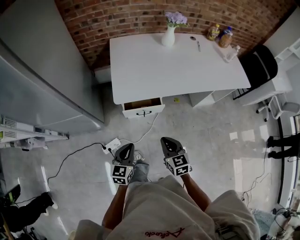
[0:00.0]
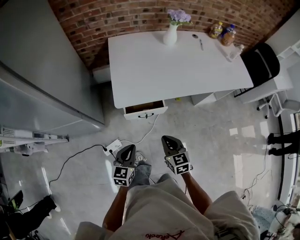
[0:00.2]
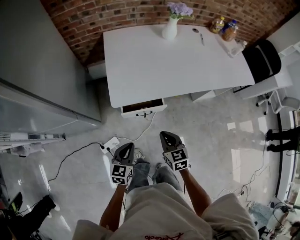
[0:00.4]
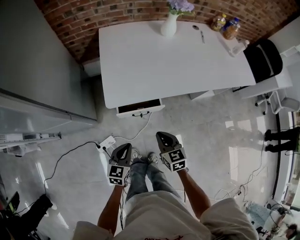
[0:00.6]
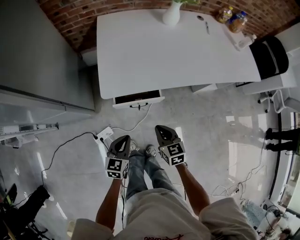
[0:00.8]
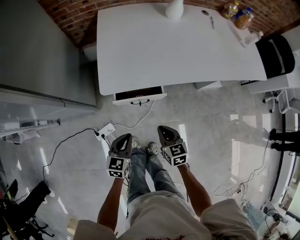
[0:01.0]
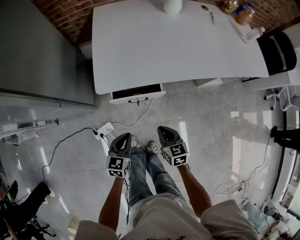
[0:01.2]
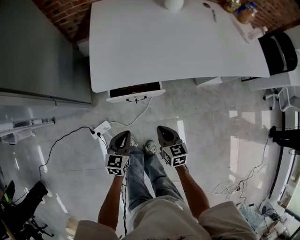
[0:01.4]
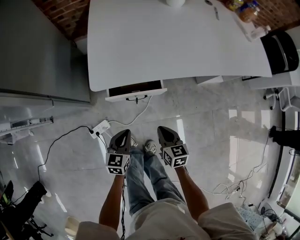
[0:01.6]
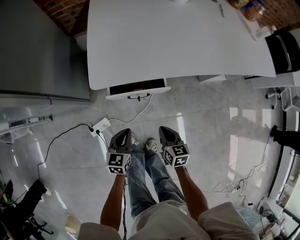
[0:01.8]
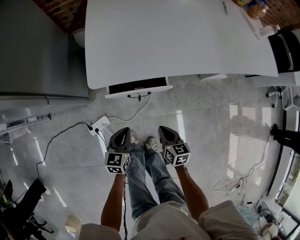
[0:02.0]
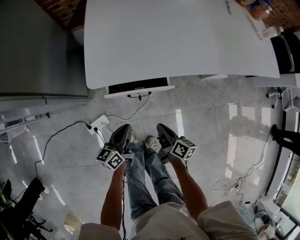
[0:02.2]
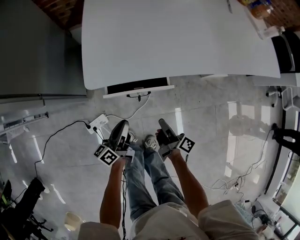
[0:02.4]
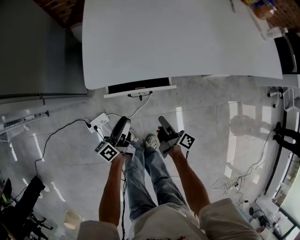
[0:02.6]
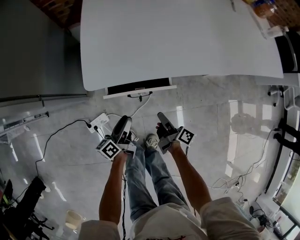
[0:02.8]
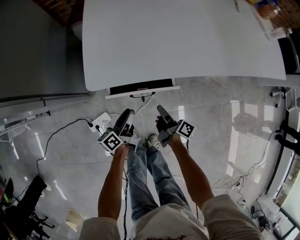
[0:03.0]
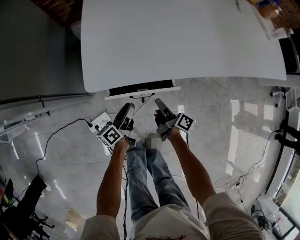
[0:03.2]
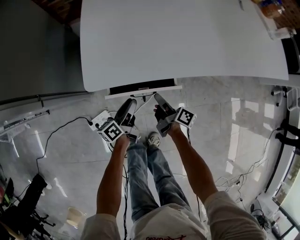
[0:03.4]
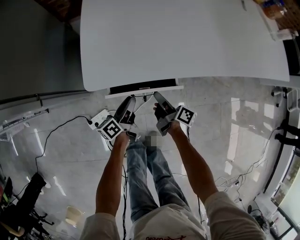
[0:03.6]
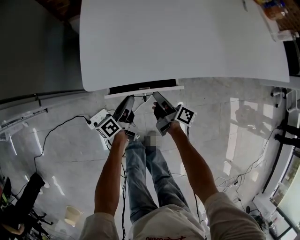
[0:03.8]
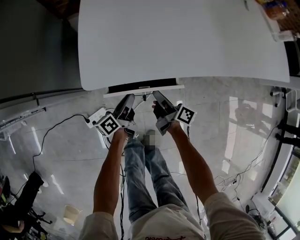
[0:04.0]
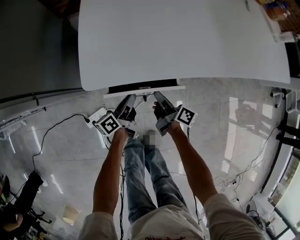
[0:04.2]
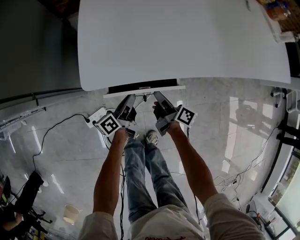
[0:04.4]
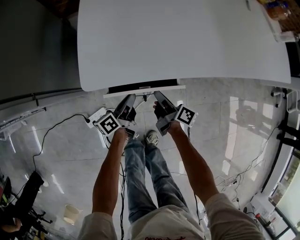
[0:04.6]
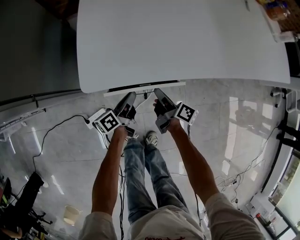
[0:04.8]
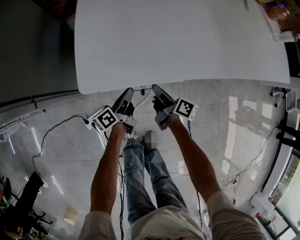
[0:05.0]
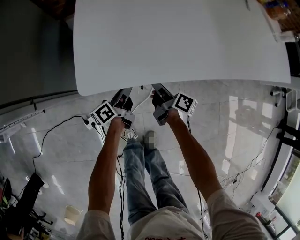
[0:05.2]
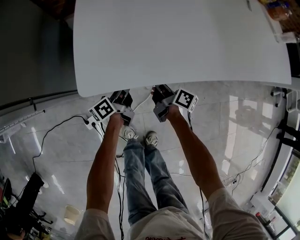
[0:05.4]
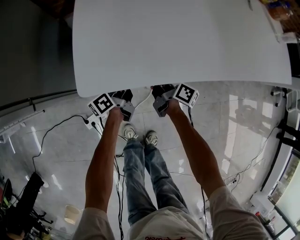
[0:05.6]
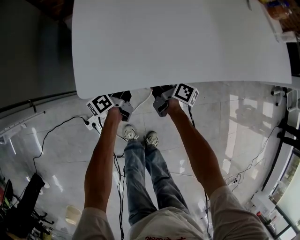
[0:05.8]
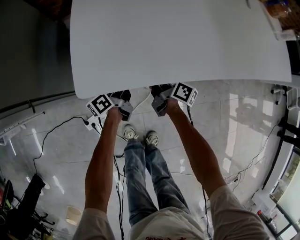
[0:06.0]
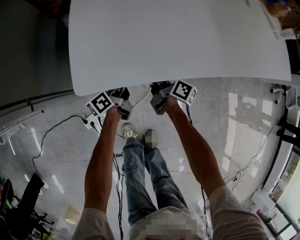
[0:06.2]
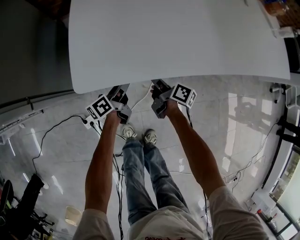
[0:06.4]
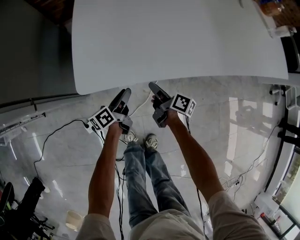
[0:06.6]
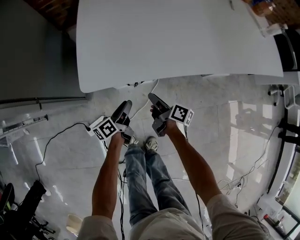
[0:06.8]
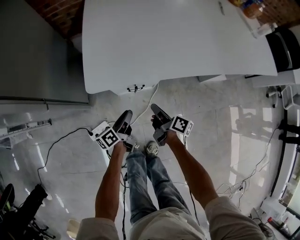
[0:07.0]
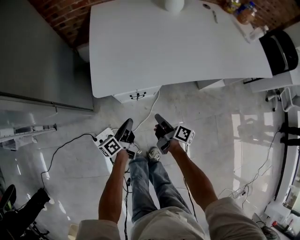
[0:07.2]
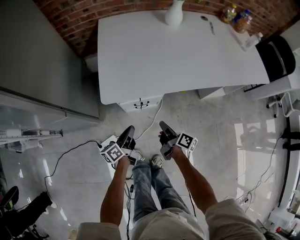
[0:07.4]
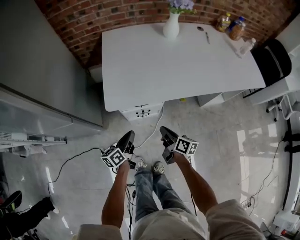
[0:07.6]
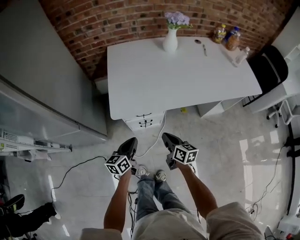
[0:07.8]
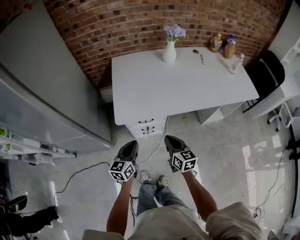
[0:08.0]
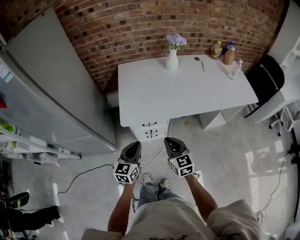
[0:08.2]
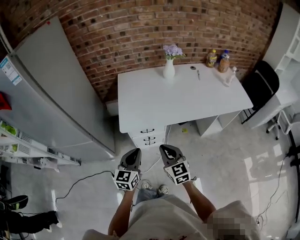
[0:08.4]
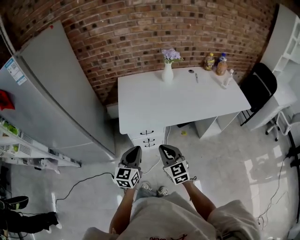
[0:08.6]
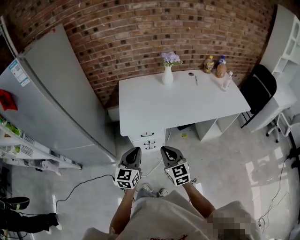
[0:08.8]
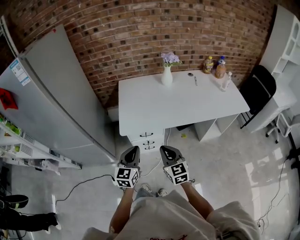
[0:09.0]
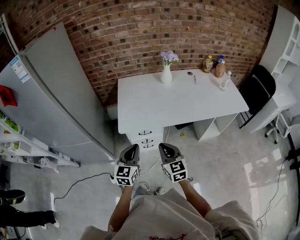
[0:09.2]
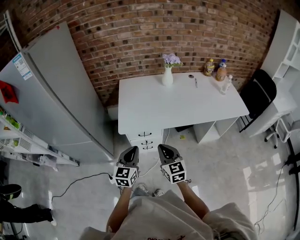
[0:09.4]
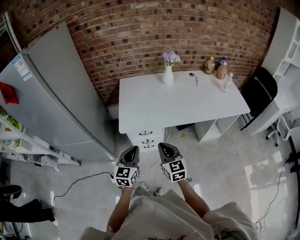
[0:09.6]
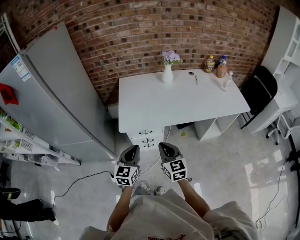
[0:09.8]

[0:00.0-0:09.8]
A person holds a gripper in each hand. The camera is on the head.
0:00.0 to 0:01.4: The left gripper heads downward and forward, covering some 20 cm. The right gripper heads downward, covering roughly 20 cm.
0:01.4 to 0:02.8: The grippers both shift downward and forward by some 10 cm. The left gripper rotates around the line of its fingers by about 50 degrees, counterclockwise from behind, and opens. The right gripper rotates around the line of its fingers by roughly 60 degrees, clockwise from behind, and opens.
0:02.8 to 0:04.2: Both grippers move forward, some 10 cm. The right gripper closes its fingers. The left gripper closes.
0:04.2 to 0:05.6: Both grippers travel together forward, some 10 cm.
0:05.6 to 0:07.0: Both grippers travel together backward, some 15 cm. The left gripper opens; the right gripper opens, then closes again.
0:07.0 to 0:08.4: The two grippers go some 35 cm upward. The right gripper rolls counterclockwise, seen from behind, by approximately 80 degrees. The left gripper twists about 60 degrees clockwise, seen from behind, and closes its fingers.
0:08.4 to 0:09.8: The grippers stay close to where they were, moving slightly.

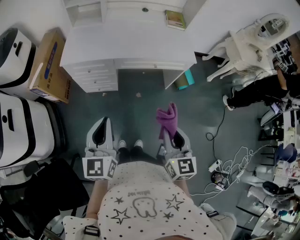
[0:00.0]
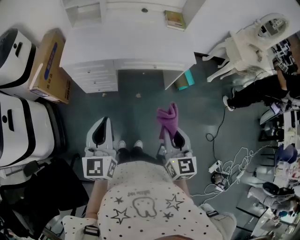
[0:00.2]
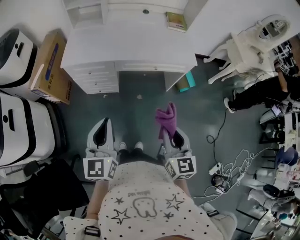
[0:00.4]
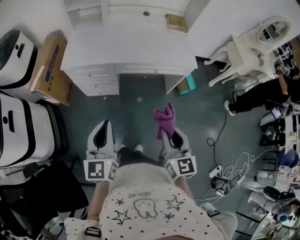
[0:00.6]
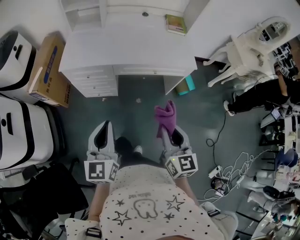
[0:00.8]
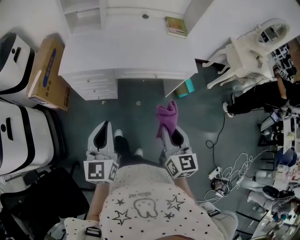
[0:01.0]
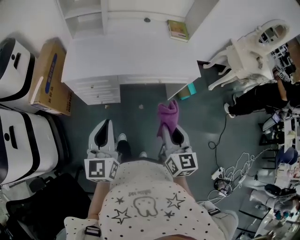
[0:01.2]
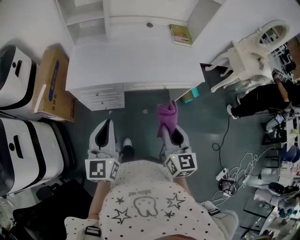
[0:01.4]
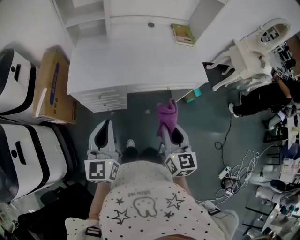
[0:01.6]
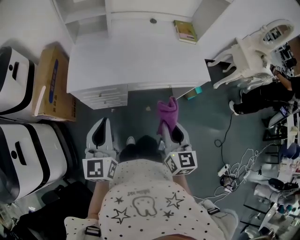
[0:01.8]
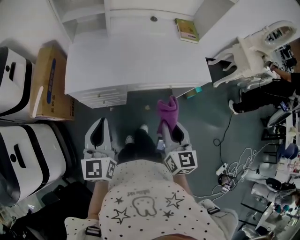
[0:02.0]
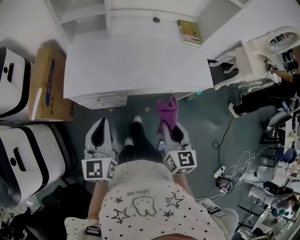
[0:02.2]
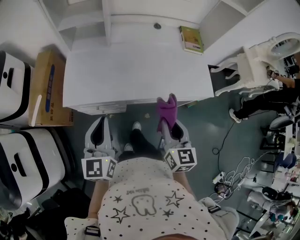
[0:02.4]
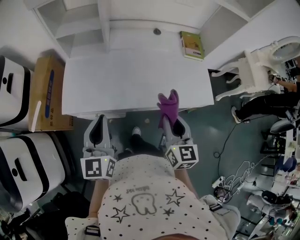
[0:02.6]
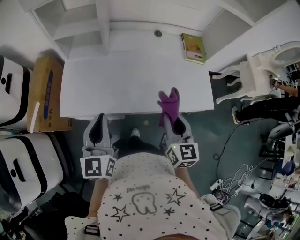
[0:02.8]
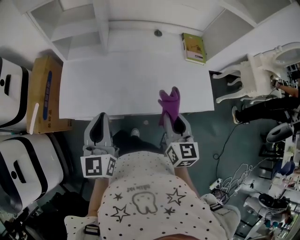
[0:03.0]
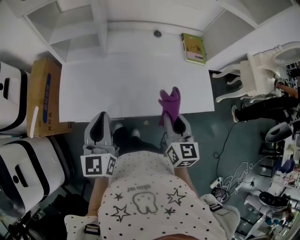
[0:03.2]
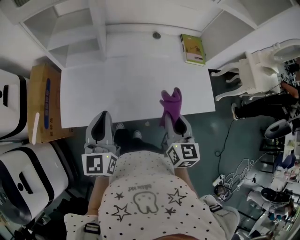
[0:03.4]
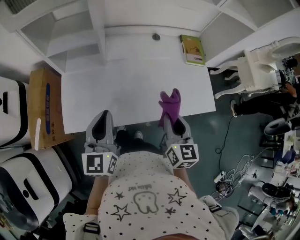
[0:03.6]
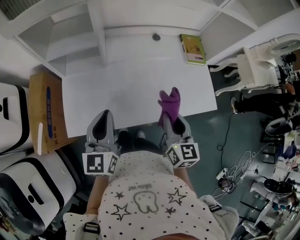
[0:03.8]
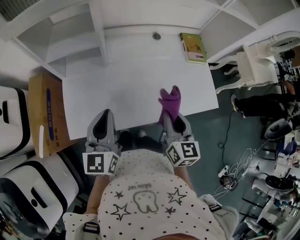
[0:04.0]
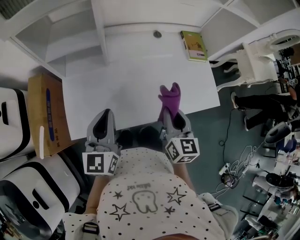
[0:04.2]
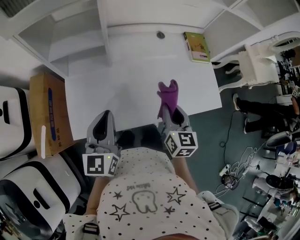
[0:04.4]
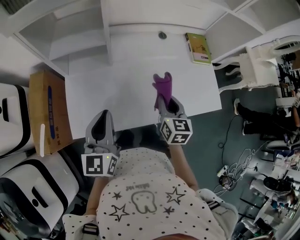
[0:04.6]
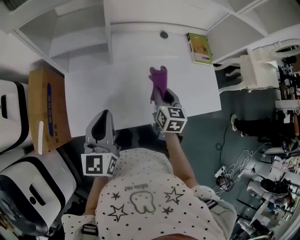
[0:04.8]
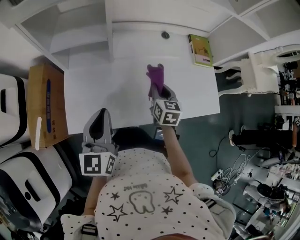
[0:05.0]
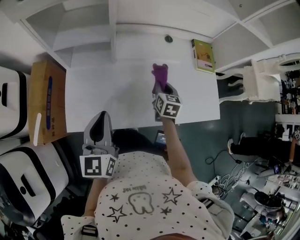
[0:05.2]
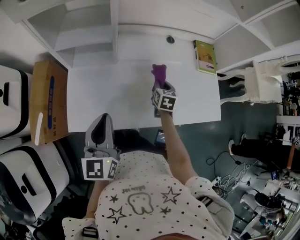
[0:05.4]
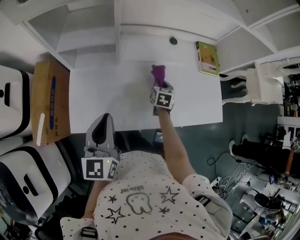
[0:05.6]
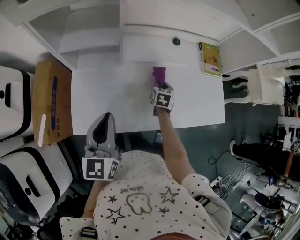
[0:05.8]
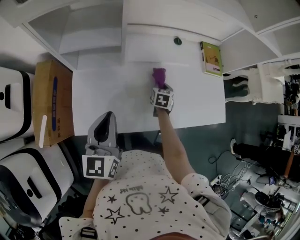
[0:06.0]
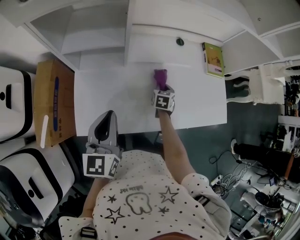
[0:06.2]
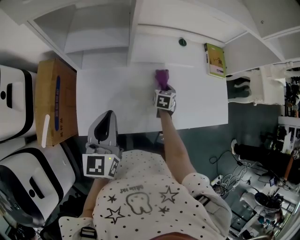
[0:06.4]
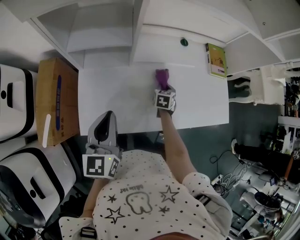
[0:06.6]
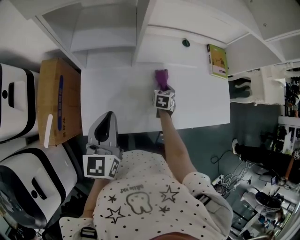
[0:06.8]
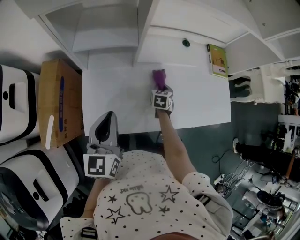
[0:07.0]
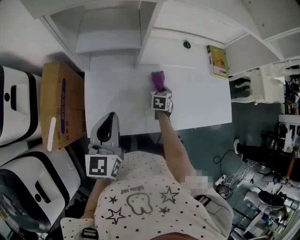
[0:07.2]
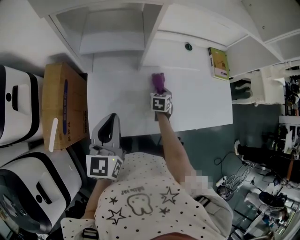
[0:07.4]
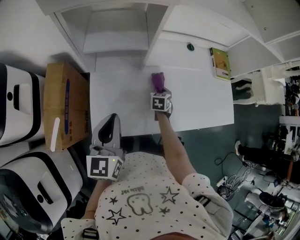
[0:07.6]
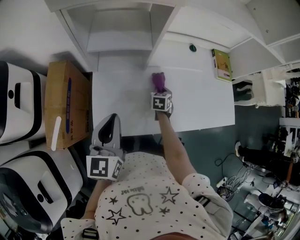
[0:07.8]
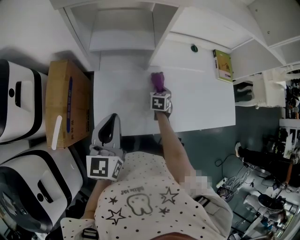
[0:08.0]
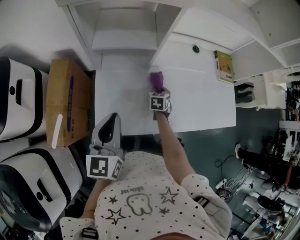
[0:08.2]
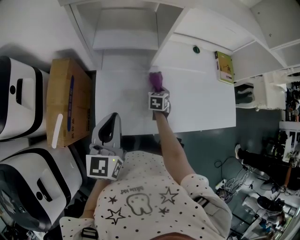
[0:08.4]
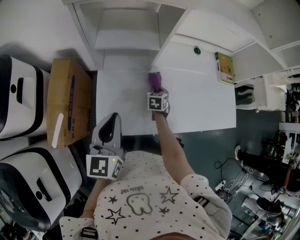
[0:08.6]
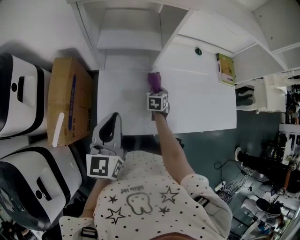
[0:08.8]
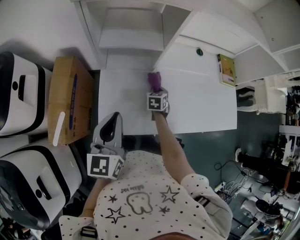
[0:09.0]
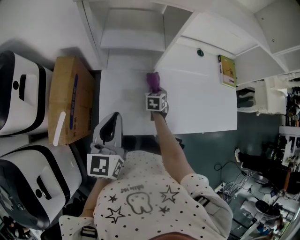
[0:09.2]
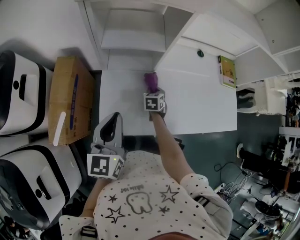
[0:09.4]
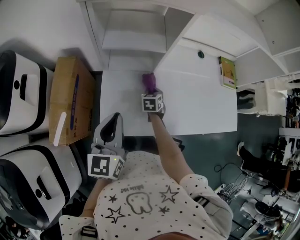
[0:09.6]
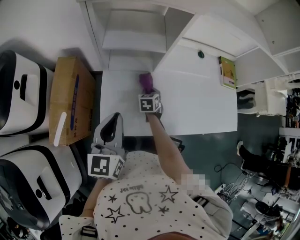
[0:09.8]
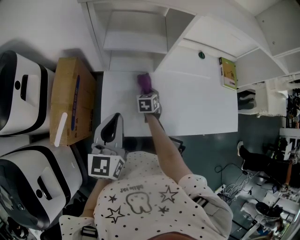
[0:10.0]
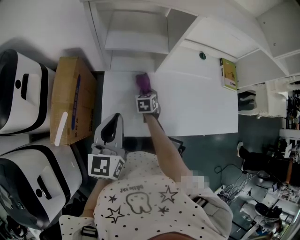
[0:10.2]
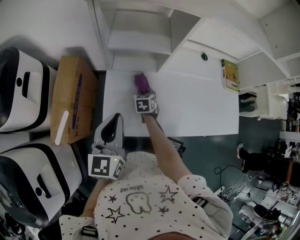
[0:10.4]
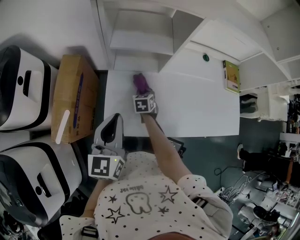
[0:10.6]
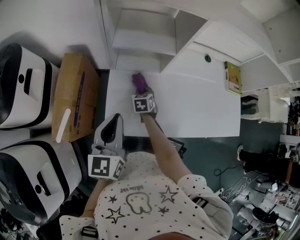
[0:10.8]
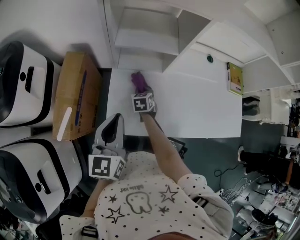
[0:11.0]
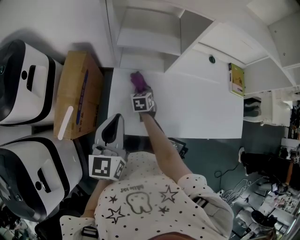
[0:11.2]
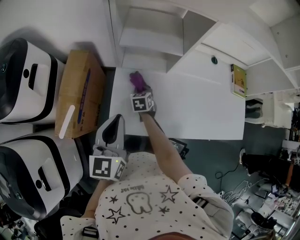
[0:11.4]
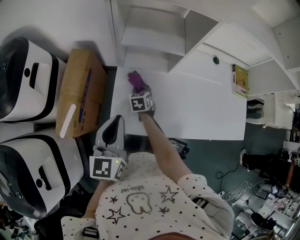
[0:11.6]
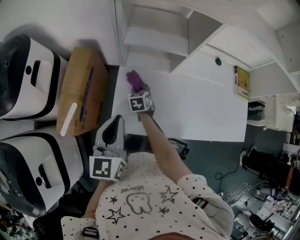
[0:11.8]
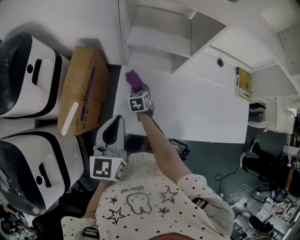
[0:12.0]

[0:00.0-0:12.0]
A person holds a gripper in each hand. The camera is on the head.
0:00.0 to 0:01.6: The grippers both shift forward and to the left by about 20 cm.
0:01.6 to 0:03.0: Both grippers travel together forward, some 25 cm.
0:03.0 to 0:04.4: The grippers both shift forward and to the left by roughly 10 cm.
0:04.4 to 0:06.0: The right gripper moves downward and forward, approximately 30 cm, and rotates roughly 30 degrees.
0:06.0 to 0:07.6: The two grippers go approximately 10 cm to the left.
0:07.6 to 0:09.0: The right gripper travels to the left by approximately 5 cm.
0:09.0 to 0:10.4: The right gripper goes some 10 cm to the left.
0:10.4 to 0:12.0: The right gripper goes roughly 10 cm to the left.

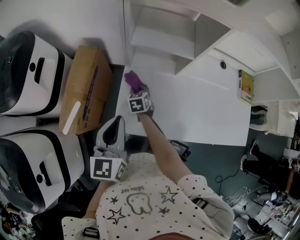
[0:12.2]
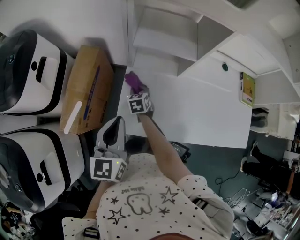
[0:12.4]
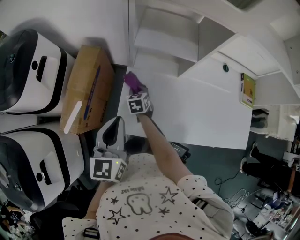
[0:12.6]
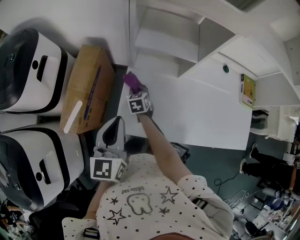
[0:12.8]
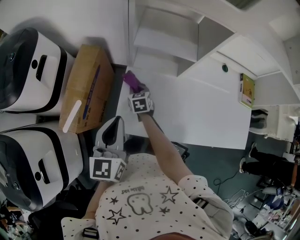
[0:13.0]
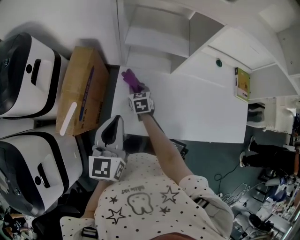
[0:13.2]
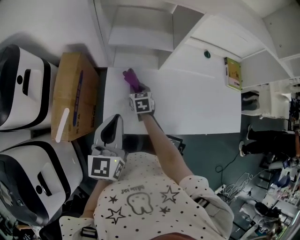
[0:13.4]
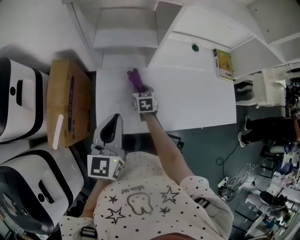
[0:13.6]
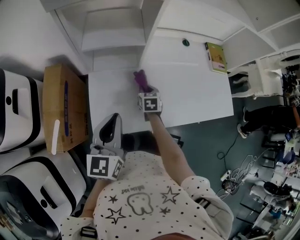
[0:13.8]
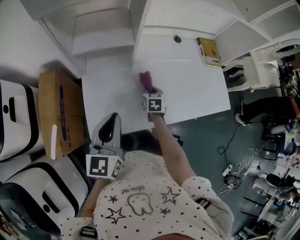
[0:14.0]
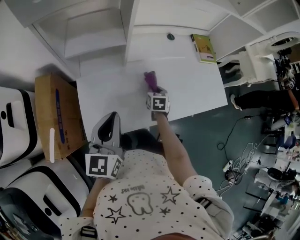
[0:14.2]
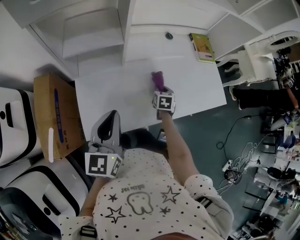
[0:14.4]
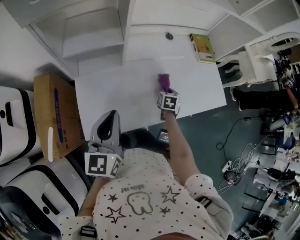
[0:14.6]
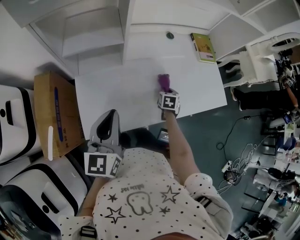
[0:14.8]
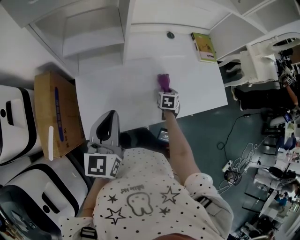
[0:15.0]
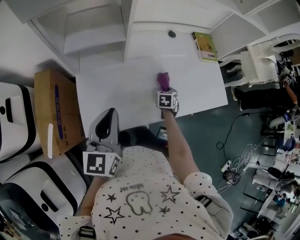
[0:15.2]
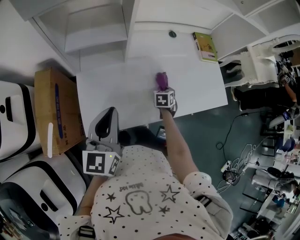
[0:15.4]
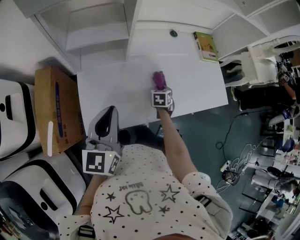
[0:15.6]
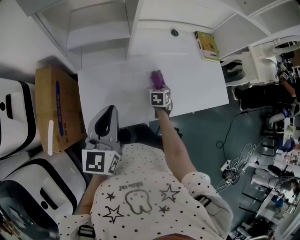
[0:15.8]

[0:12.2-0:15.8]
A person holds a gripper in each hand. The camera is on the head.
0:12.2 to 0:14.0: The right gripper ends up about 30 cm from where it was, and turns by about 30 degrees, while the left gripper changes place by about 10 cm, and turns by about 20 degrees.
0:14.0 to 0:15.8: The right gripper shifts approximately 10 cm to the right.
